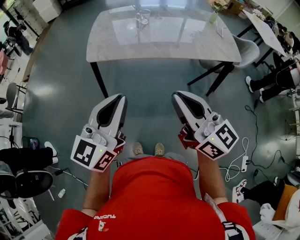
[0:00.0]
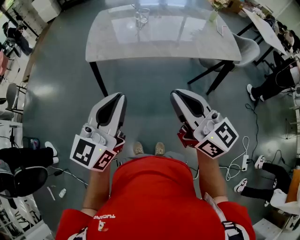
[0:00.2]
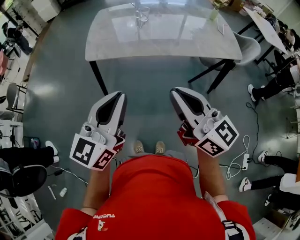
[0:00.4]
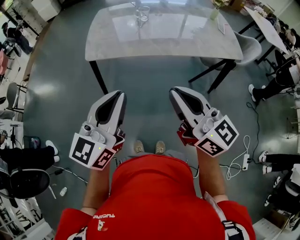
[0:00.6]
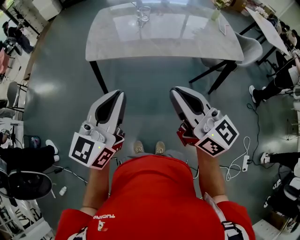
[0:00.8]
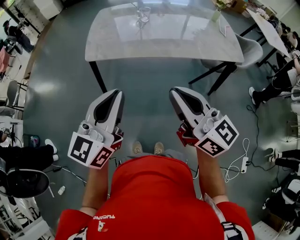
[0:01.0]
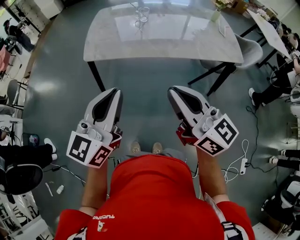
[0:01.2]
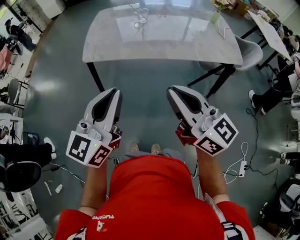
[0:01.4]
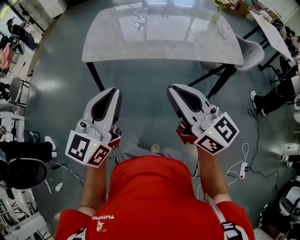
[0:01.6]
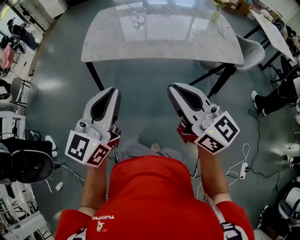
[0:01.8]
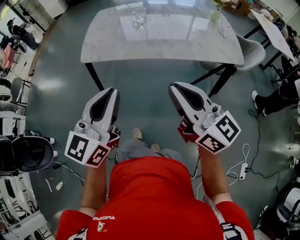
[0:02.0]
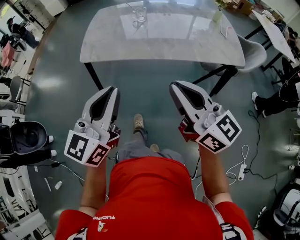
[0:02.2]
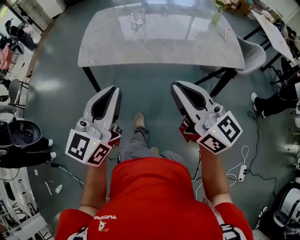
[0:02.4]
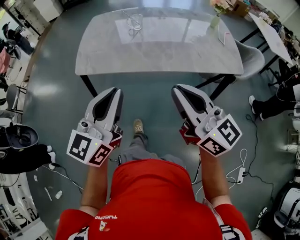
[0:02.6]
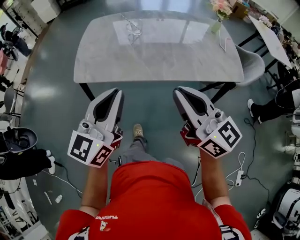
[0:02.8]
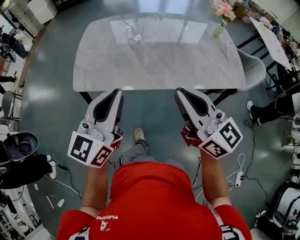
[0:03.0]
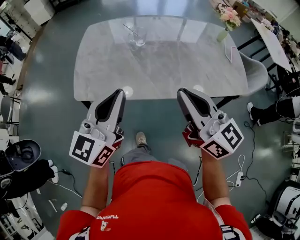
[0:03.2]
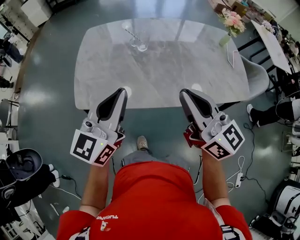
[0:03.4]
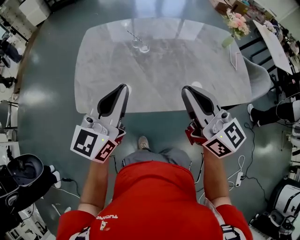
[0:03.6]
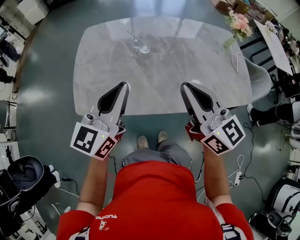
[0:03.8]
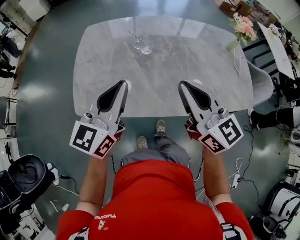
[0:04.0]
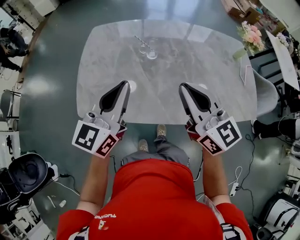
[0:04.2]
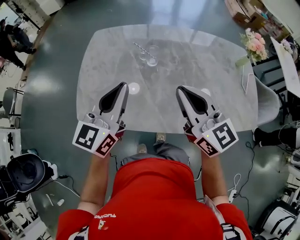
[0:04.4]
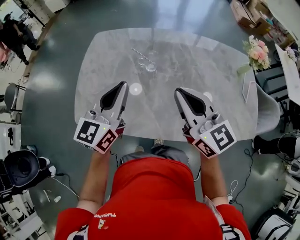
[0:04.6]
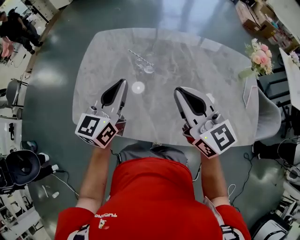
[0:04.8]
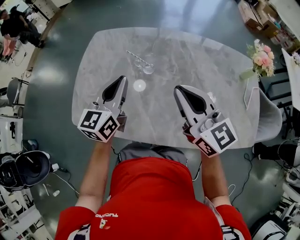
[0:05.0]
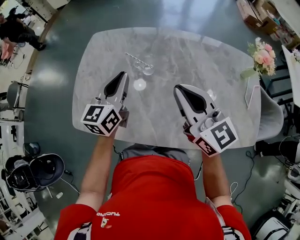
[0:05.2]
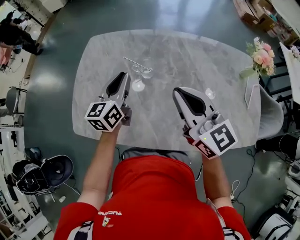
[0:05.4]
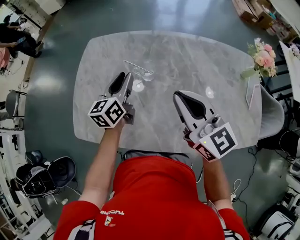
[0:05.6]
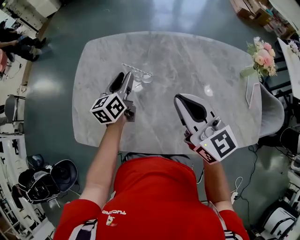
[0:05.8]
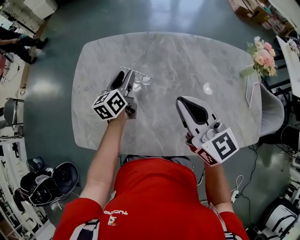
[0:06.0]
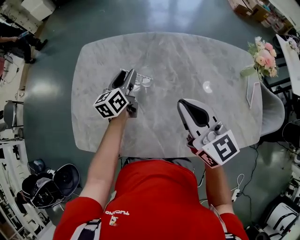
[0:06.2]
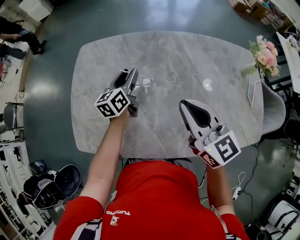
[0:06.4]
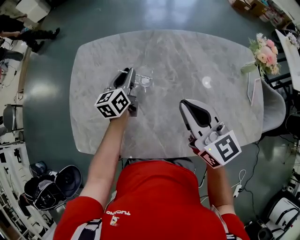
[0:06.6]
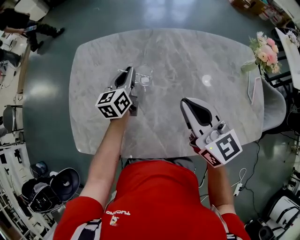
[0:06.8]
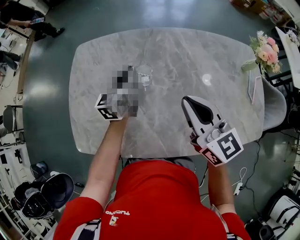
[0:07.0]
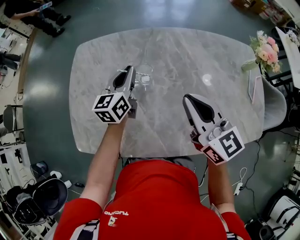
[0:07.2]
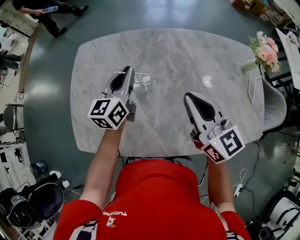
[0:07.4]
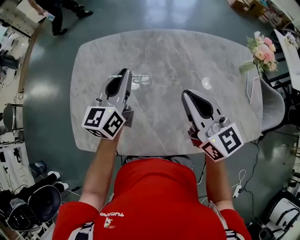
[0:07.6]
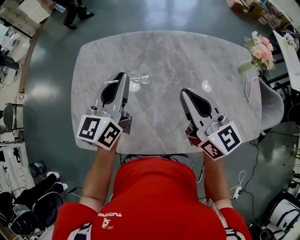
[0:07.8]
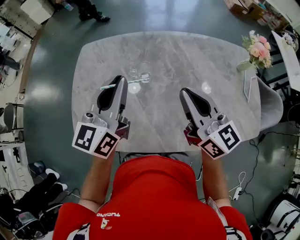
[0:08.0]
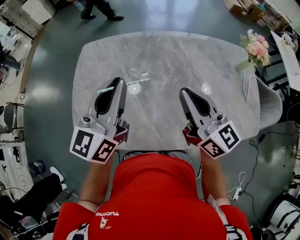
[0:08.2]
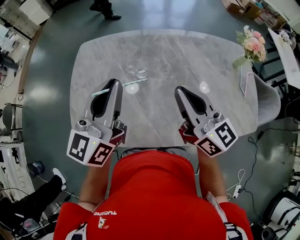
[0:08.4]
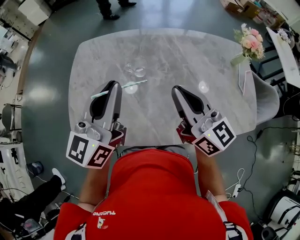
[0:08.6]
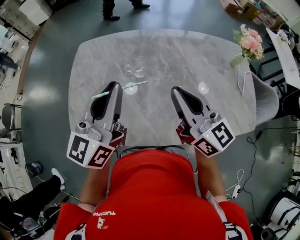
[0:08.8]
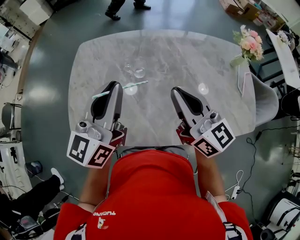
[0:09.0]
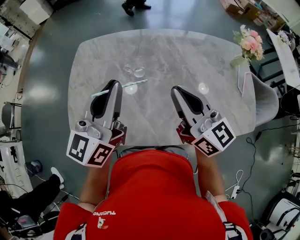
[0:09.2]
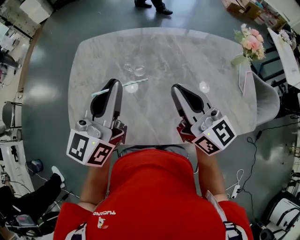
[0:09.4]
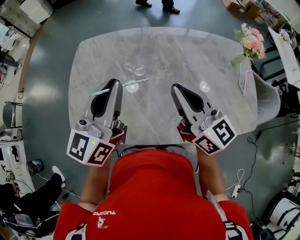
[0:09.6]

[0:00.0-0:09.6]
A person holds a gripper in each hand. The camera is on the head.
0:00.0 to 0:01.6: Both grippers travel together to the right, roughly 5 cm.
0:01.6 to 0:03.2: Both grippers travel together forward, roughly 25 cm.
0:03.2 to 0:04.8: The two grippers go roughly 25 cm forward.
0:04.8 to 0:06.4: The left gripper travels forward and downward by about 25 cm, changes its angle by about 20 degrees, and opens its fingers. Meanwhile the right gripper shifts some 5 cm forward.
0:06.4 to 0:08.0: The left gripper travels upward and backward by some 25 cm, rotates some 30 degrees, and closes.
0:08.0 to 0:09.6: The left gripper travels backward by roughly 5 cm.

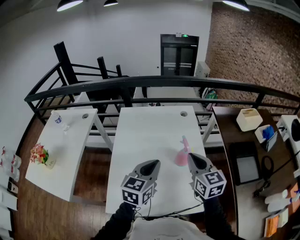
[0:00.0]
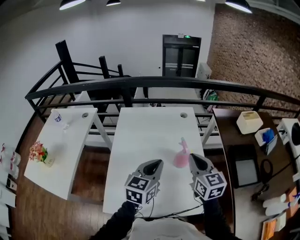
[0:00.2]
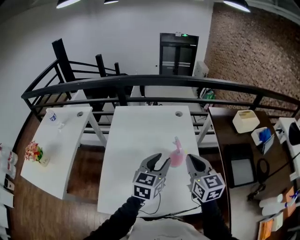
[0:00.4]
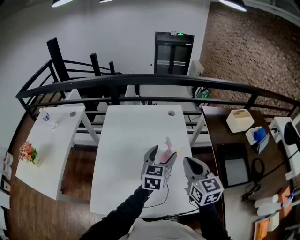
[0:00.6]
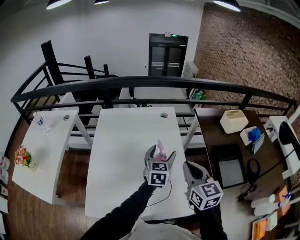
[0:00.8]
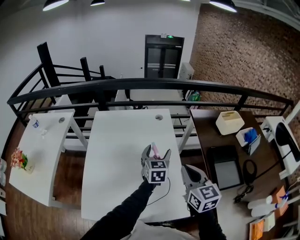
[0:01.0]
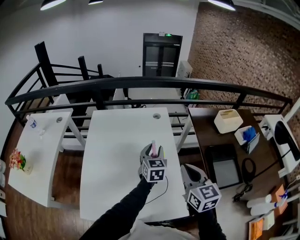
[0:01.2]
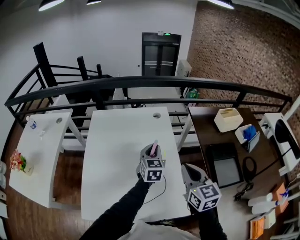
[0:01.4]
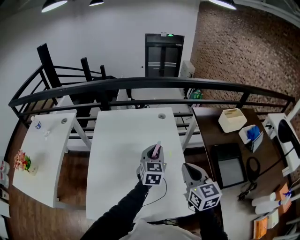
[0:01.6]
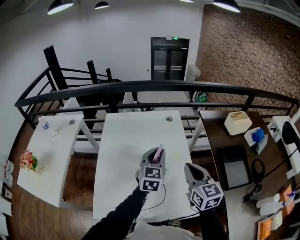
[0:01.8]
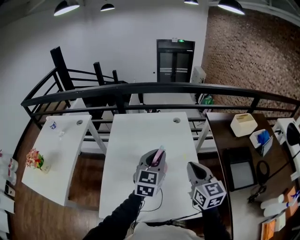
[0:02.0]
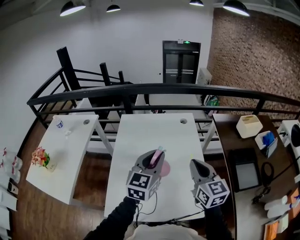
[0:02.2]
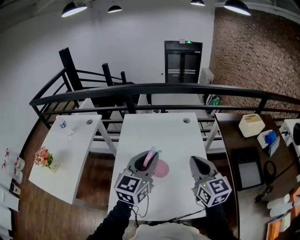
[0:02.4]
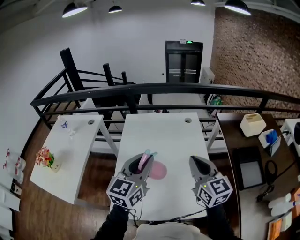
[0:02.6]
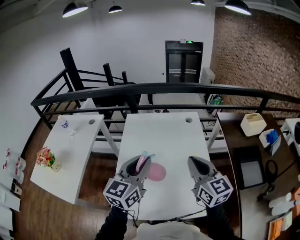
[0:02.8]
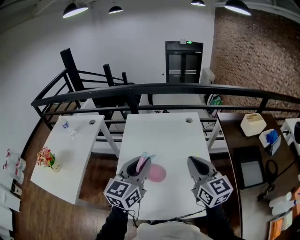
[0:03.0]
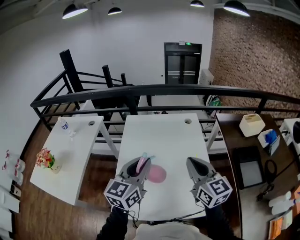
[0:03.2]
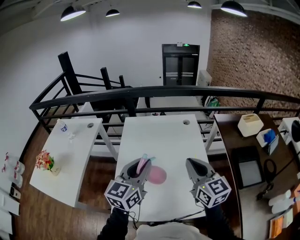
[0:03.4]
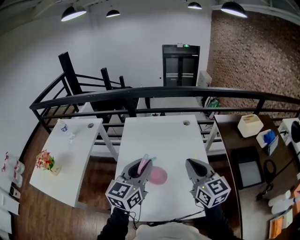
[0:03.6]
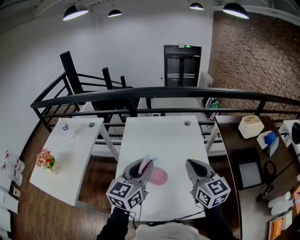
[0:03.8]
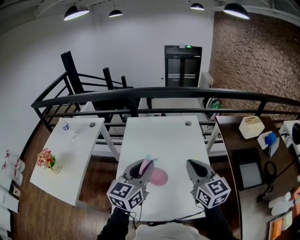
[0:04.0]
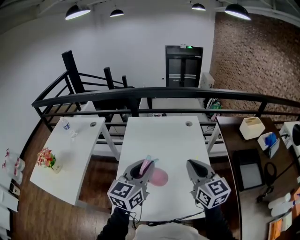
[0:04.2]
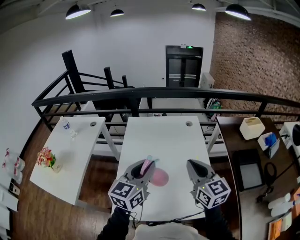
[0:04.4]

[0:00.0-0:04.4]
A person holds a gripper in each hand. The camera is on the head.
0:00.0 to 0:01.4: The left gripper is displaced forward, to the right and downward by roughly 25 cm, and opens and closes again. The right gripper is displaced to the right by about 10 cm.
0:01.4 to 0:03.0: The right gripper travels to the left and upward by approximately 15 cm, while the left gripper goes about 30 cm to the left, backward and upward, and rotates approximately 20 degrees.
0:03.0 to 0:04.4: There are only small adjustments of the grippers.

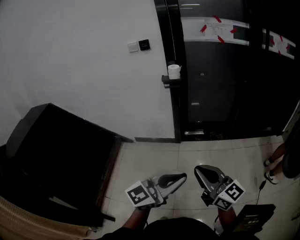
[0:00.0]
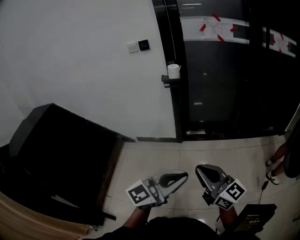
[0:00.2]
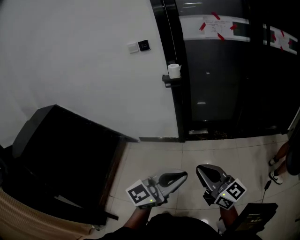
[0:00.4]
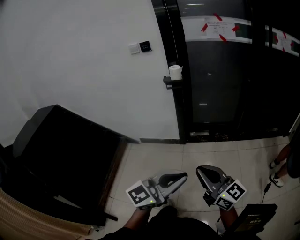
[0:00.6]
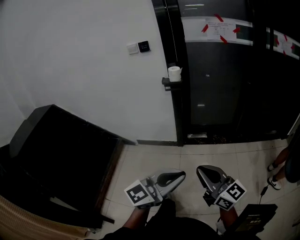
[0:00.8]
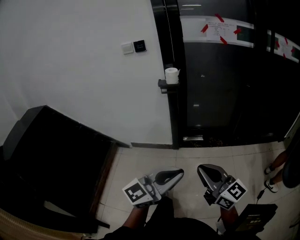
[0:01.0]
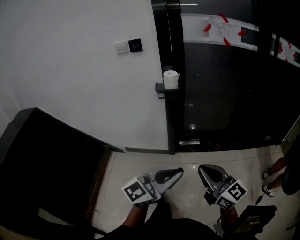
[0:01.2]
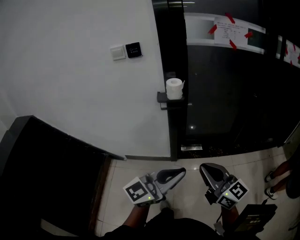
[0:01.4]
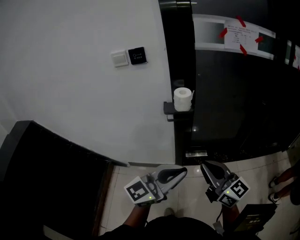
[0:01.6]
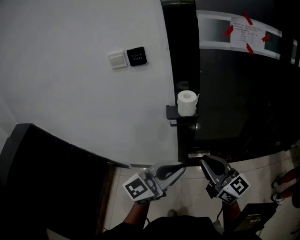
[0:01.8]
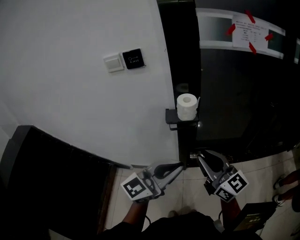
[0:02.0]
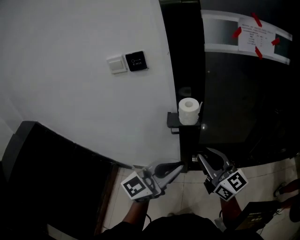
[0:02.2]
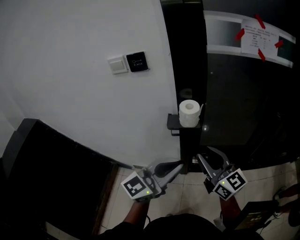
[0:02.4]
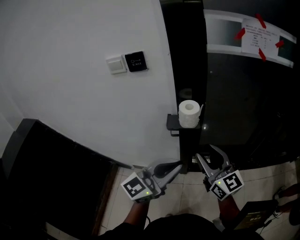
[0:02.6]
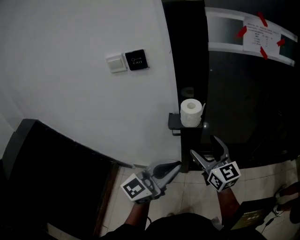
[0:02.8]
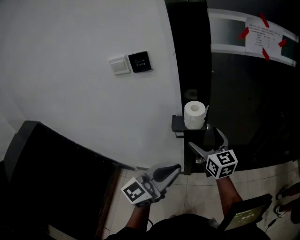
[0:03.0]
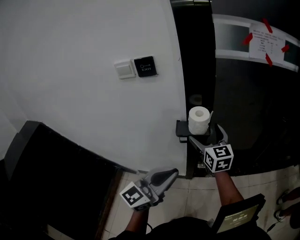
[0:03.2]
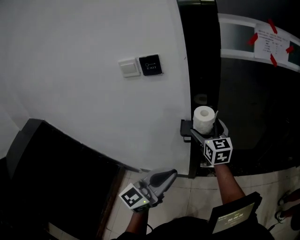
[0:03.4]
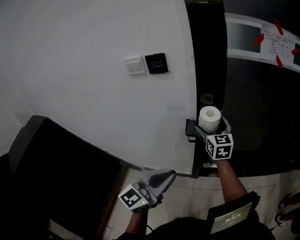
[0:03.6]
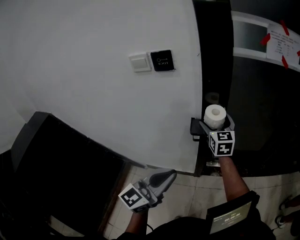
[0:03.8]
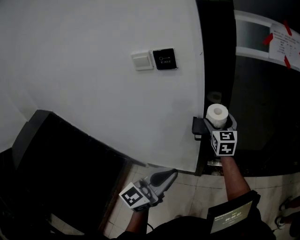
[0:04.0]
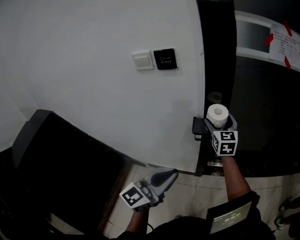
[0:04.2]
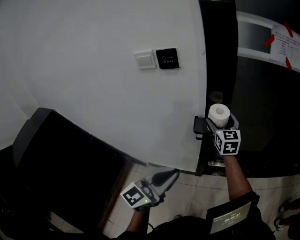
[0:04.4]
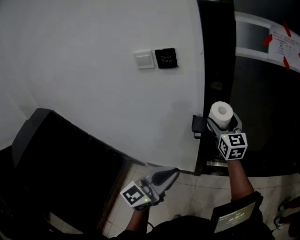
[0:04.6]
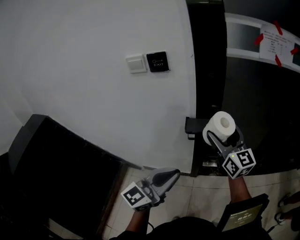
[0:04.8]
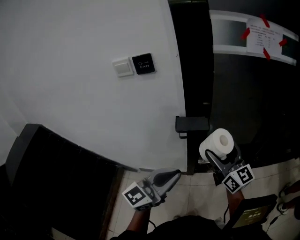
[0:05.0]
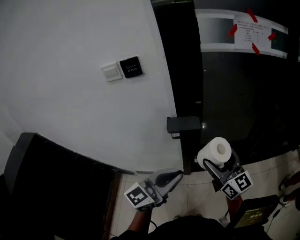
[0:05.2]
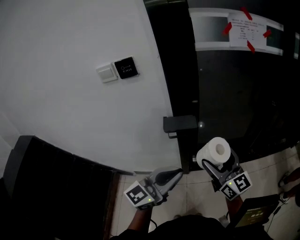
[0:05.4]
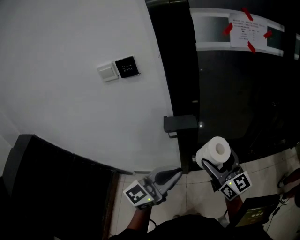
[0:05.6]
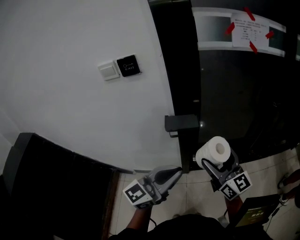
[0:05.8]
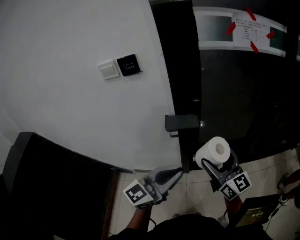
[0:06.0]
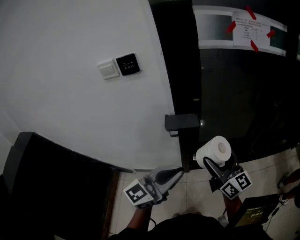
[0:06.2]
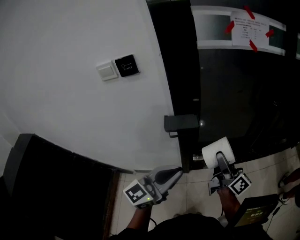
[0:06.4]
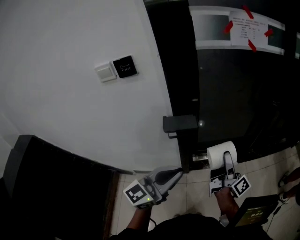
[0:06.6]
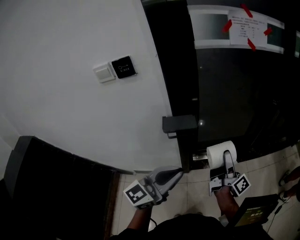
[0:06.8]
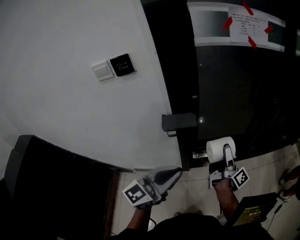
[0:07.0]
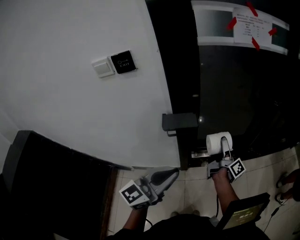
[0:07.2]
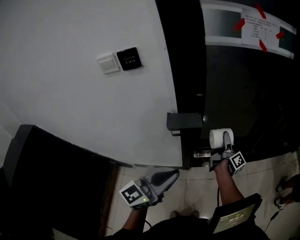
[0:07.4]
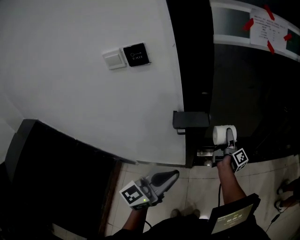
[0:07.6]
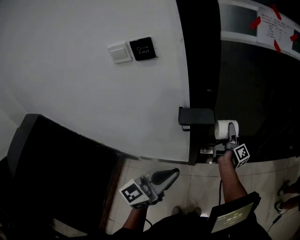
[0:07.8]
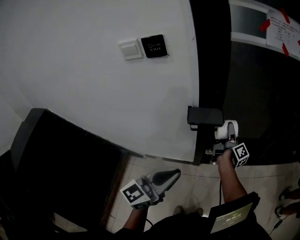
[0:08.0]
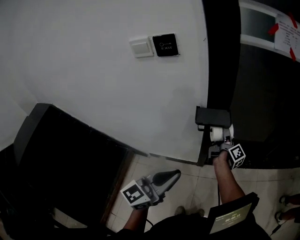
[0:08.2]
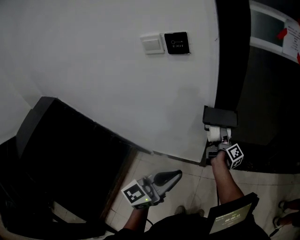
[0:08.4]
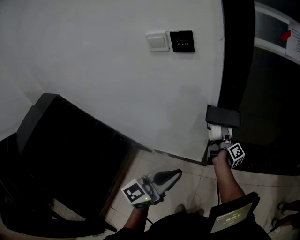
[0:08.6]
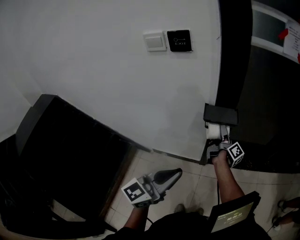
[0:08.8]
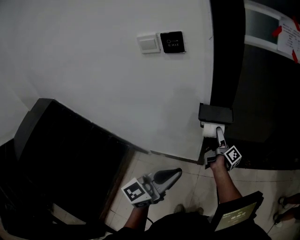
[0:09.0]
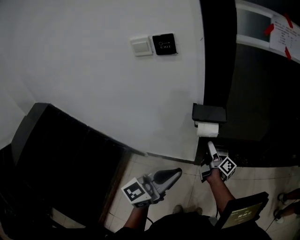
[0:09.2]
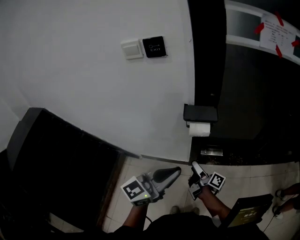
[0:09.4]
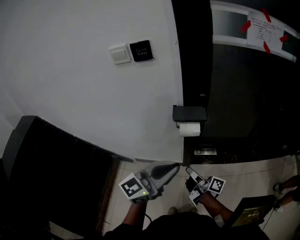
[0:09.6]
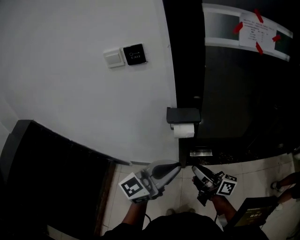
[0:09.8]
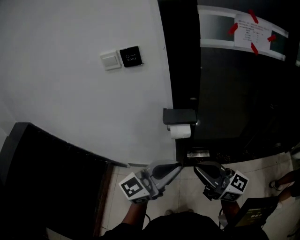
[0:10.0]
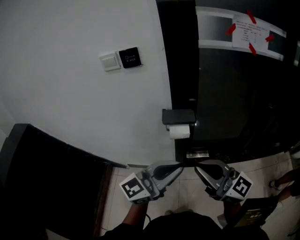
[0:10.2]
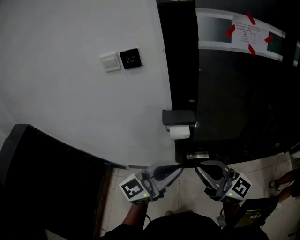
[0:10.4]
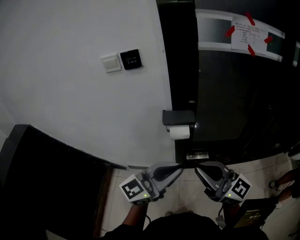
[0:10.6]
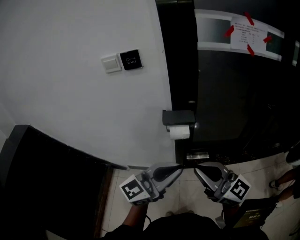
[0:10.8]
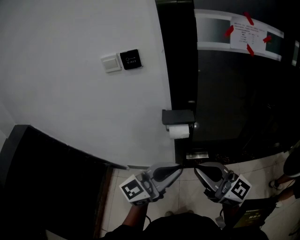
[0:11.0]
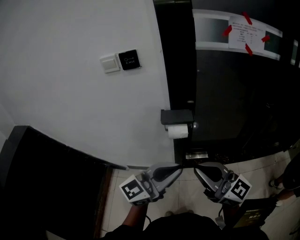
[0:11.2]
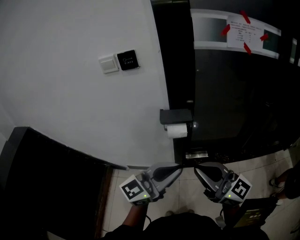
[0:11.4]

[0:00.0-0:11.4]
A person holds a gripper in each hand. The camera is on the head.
0:00.0 to 0:01.4: The grippers both shift forward by roughly 30 cm.
0:01.4 to 0:02.8: The left gripper is displaced forward and to the left by some 25 cm. The right gripper travels forward by approximately 30 cm, and opens.
0:02.8 to 0:04.2: The right gripper heads forward and to the left, covering approximately 20 cm, and turns by roughly 20 degrees. The left gripper is displaced to the left by roughly 10 cm.
0:04.2 to 0:05.6: The right gripper is displaced backward and to the right by roughly 25 cm, and changes its angle by roughly 30 degrees. The left gripper moves to the right, roughly 10 cm.
0:05.6 to 0:07.2: The right gripper is displaced downward and forward by about 20 cm, and twists some 70 degrees clockwise, seen from behind.
0:07.2 to 0:08.6: The left gripper heads to the left and backward, covering roughly 10 cm, while the right gripper shifts roughly 20 cm to the left.
0:08.6 to 0:10.0: The left gripper goes roughly 10 cm to the right, and swivels approximately 20 degrees. Meanwhile the right gripper shifts about 35 cm backward and upward, swivels approximately 80 degrees, and closes its fingers.
0:10.0 to 0:11.4: The right gripper moves some 5 cm.
